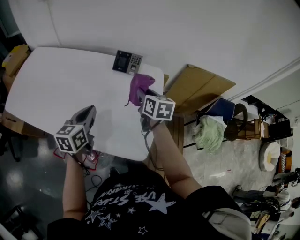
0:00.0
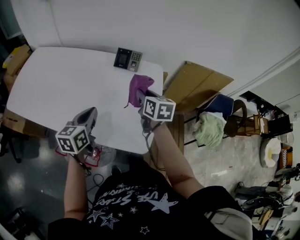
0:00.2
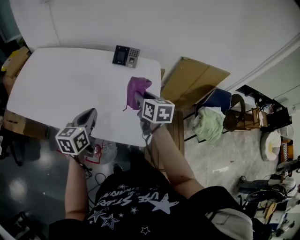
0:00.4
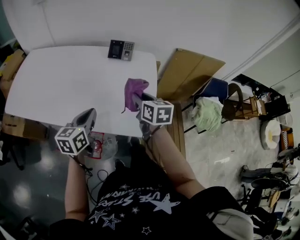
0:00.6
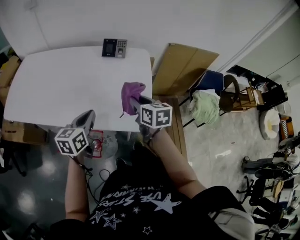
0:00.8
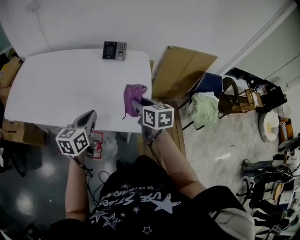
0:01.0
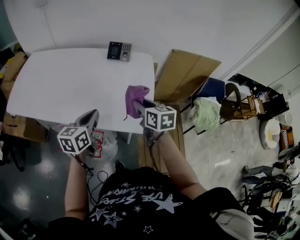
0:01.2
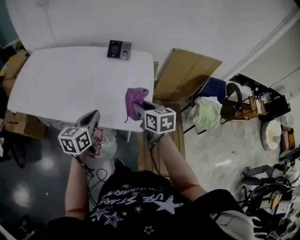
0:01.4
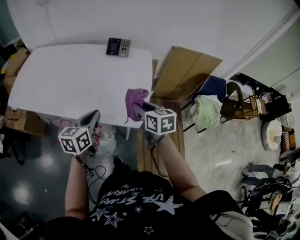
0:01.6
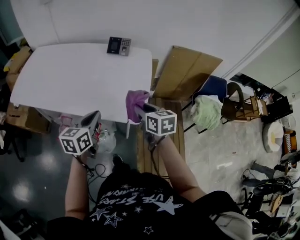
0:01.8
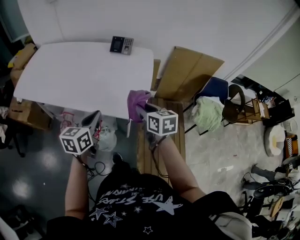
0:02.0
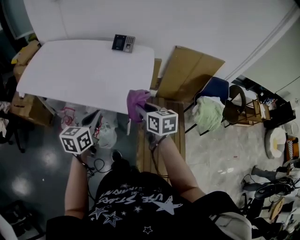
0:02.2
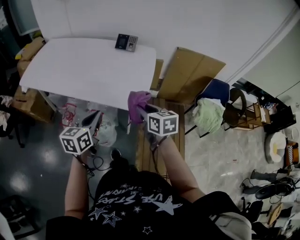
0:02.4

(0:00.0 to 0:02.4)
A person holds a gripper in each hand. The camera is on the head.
0:00.0 - 0:01.2: Both grippers move backward, approximately 20 cm.
0:01.2 - 0:02.4: Both grippers travel together backward, approximately 15 cm.

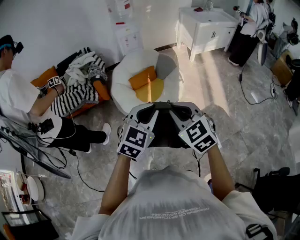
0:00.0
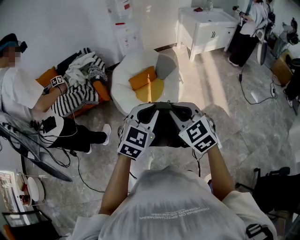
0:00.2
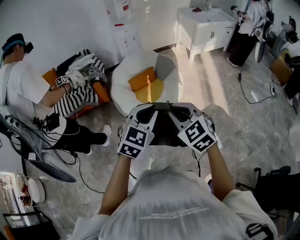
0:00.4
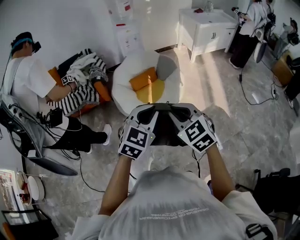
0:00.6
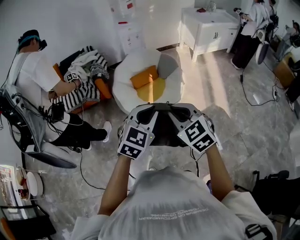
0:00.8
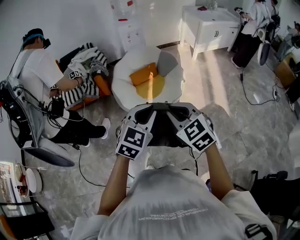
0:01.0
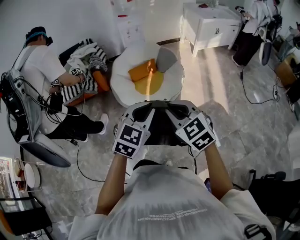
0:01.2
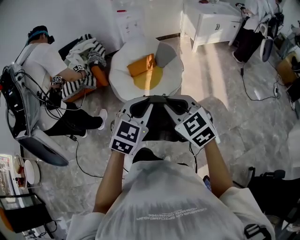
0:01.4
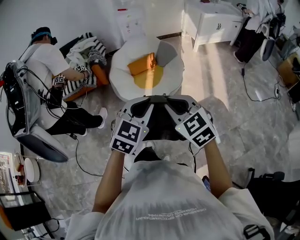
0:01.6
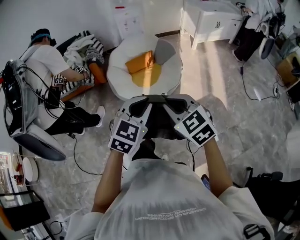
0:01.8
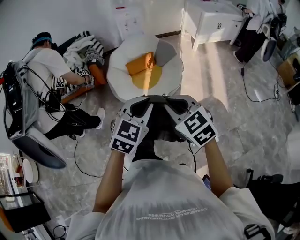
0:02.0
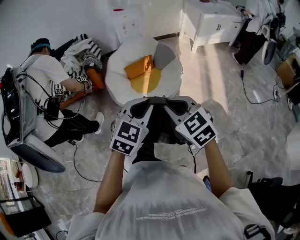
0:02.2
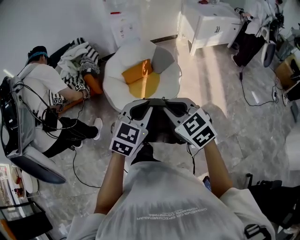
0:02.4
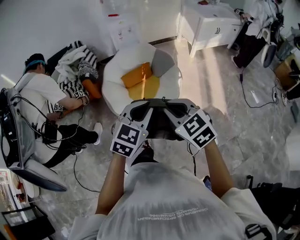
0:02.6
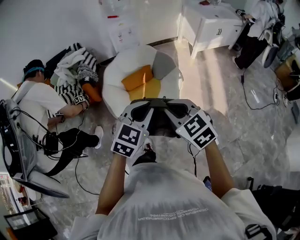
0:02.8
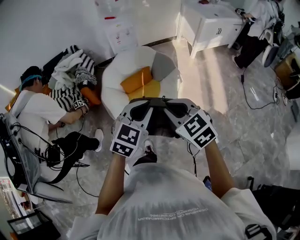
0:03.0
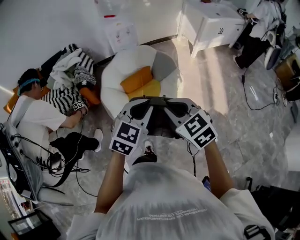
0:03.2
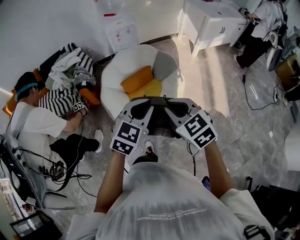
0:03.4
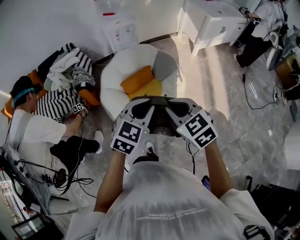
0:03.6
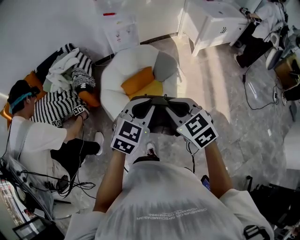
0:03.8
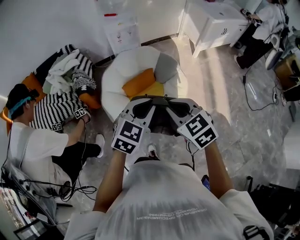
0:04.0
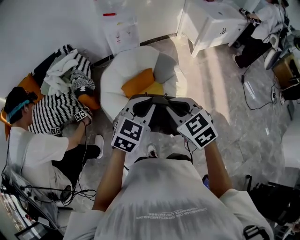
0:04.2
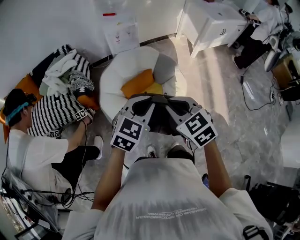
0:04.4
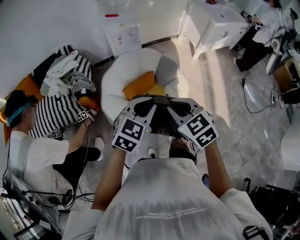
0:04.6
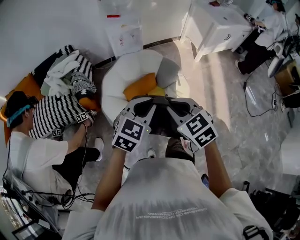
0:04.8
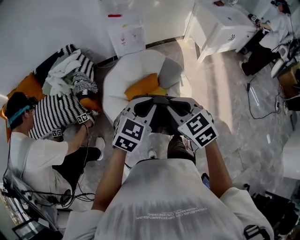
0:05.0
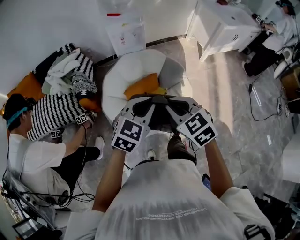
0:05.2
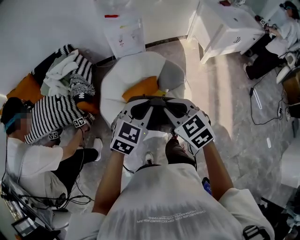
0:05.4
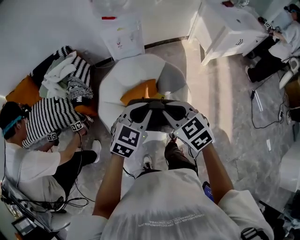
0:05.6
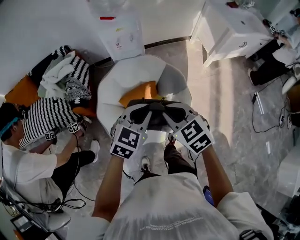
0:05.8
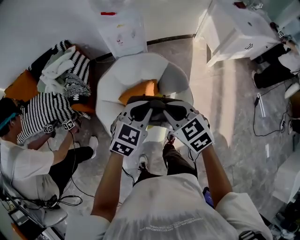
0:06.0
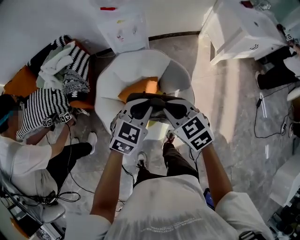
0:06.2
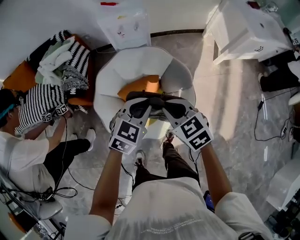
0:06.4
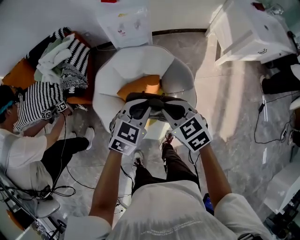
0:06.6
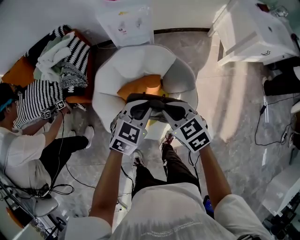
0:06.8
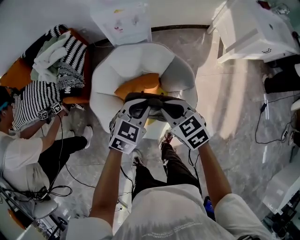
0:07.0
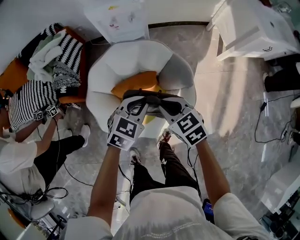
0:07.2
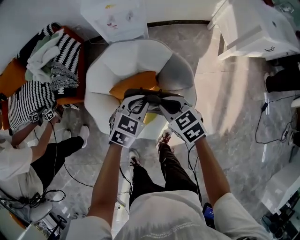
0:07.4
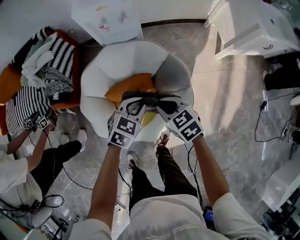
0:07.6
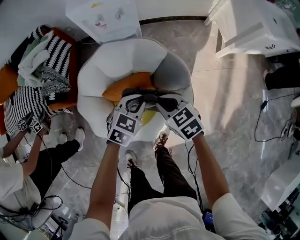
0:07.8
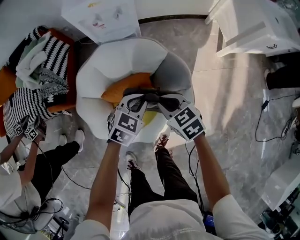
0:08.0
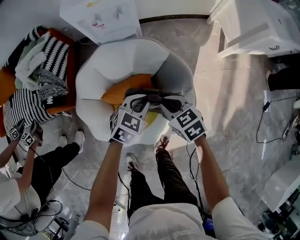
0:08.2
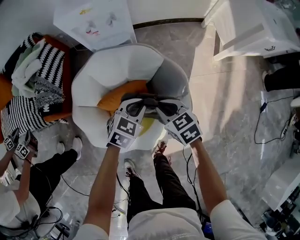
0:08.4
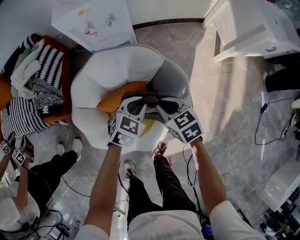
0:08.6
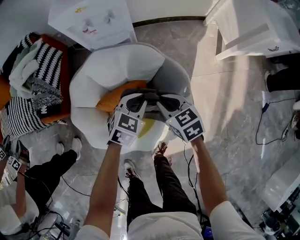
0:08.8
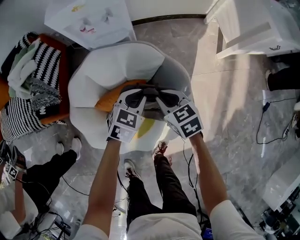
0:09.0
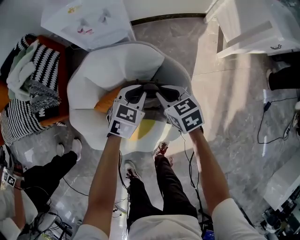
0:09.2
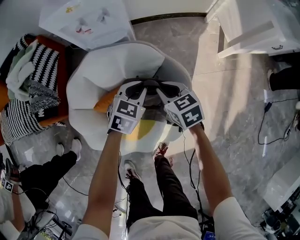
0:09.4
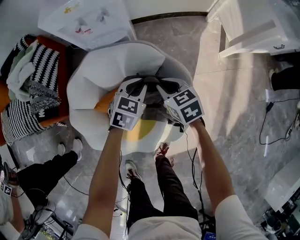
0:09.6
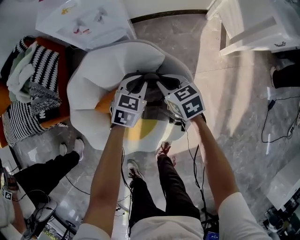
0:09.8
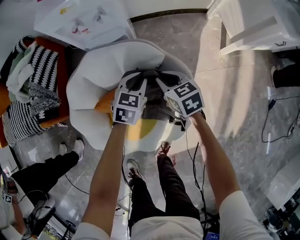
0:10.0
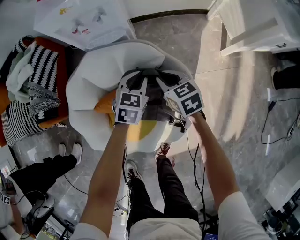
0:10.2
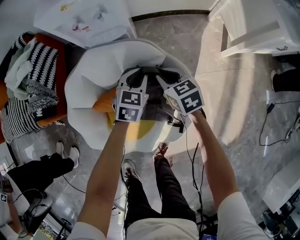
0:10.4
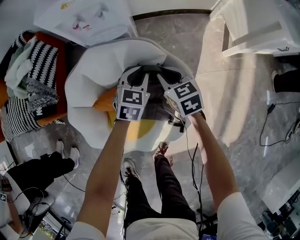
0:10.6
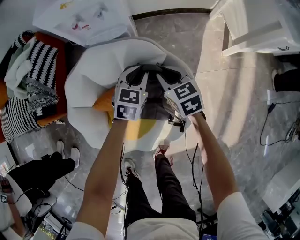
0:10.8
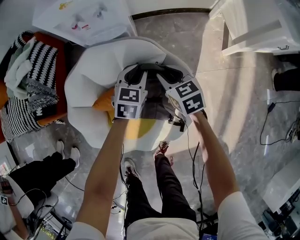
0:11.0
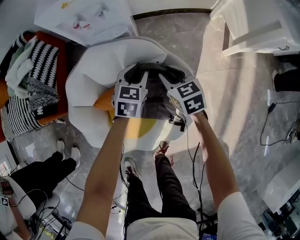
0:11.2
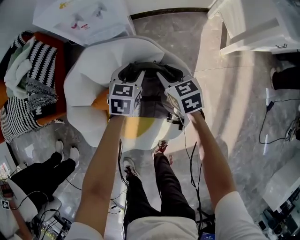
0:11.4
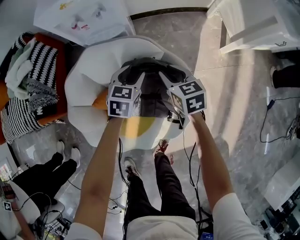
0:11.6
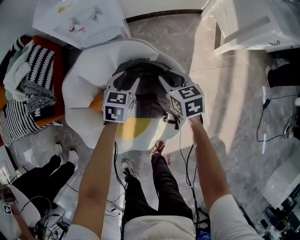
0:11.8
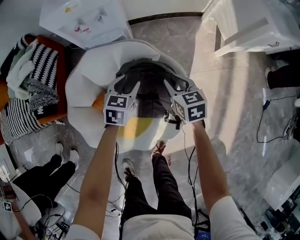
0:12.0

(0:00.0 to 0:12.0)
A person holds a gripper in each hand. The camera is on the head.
0:00.0 - 0:01.6: The left gripper moves roughly 5 cm. The right gripper changes place by some 5 cm.
0:01.6 - 0:03.0: Both grippers move forward, about 30 cm.
0:03.0 - 0:04.4: Both grippers move forward and to the left, some 15 cm.
0:04.4 - 0:06.0: Both grippers travel together forward, approximately 25 cm.
0:06.0 - 0:07.6: The two grippers go about 25 cm downward and forward.
0:07.6 - 0:09.0: The two grippers go approximately 15 cm forward and downward.
0:09.0 - 0:10.4: Both grippers move forward, about 10 cm.
0:10.4 - 0:12.0: The left gripper shifts by about 5 cm, and opens its fingers, while the right gripper is displaced to the right by about 5 cm.

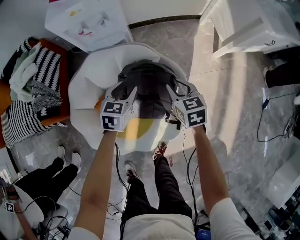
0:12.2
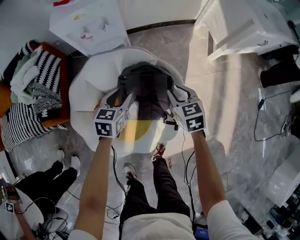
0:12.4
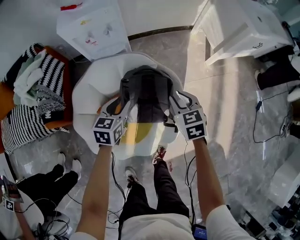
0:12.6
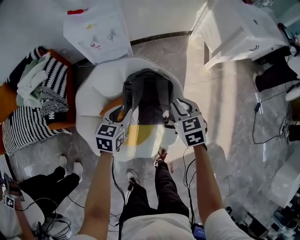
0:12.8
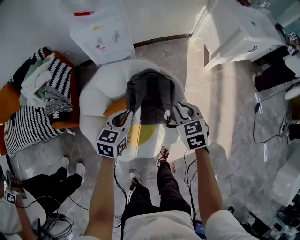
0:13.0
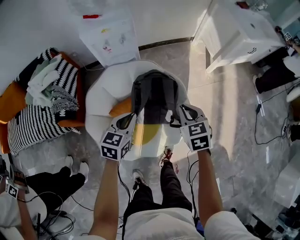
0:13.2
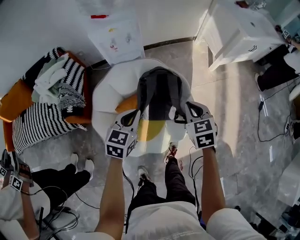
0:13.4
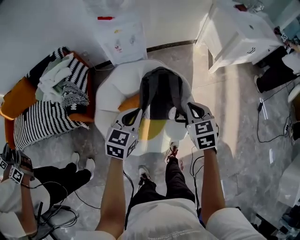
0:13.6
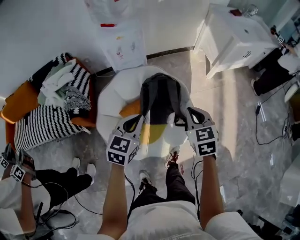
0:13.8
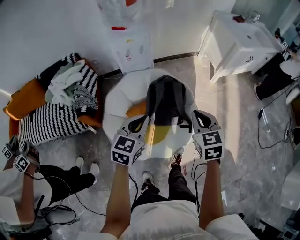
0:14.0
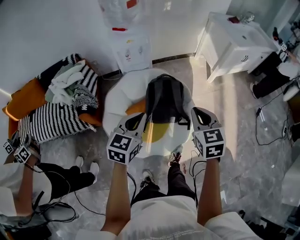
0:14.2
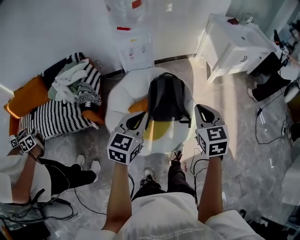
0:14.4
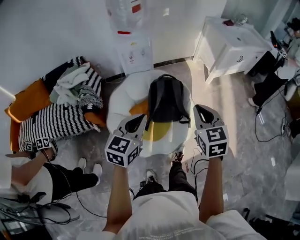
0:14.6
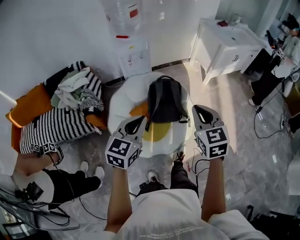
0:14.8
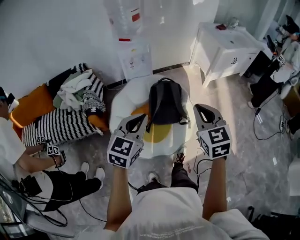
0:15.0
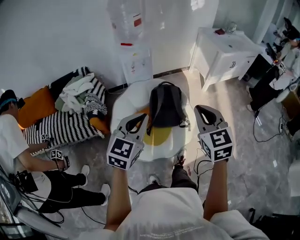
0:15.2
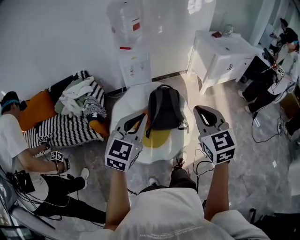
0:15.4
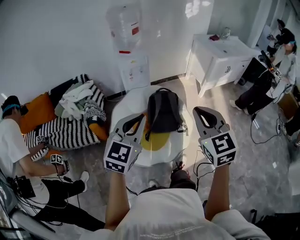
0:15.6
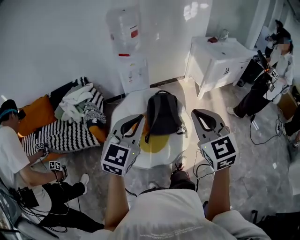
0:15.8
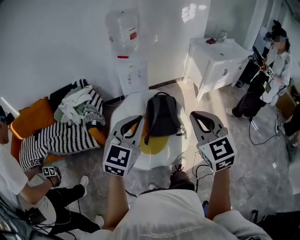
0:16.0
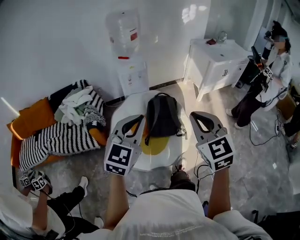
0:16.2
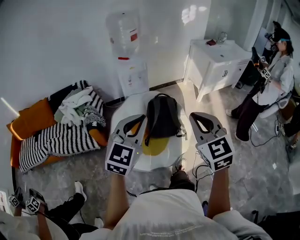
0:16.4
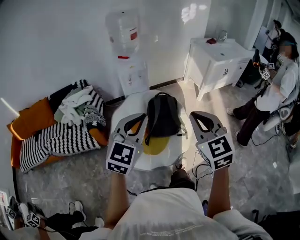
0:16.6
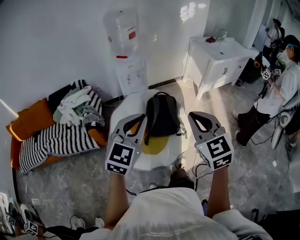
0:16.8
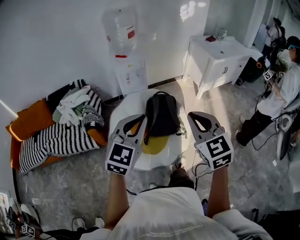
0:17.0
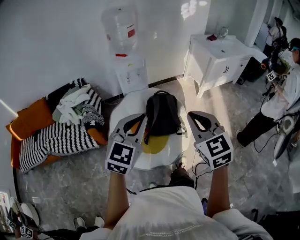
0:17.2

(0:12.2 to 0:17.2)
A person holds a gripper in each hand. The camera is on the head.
0:12.2 - 0:13.8: The grippers both shift upward and backward by approximately 35 cm. The left gripper closes. The right gripper closes up.
0:13.8 - 0:15.6: The right gripper is displaced backward and upward by some 35 cm, and rotates roughly 30 degrees, while the left gripper travels upward and backward by approximately 35 cm, and changes its angle by some 30 degrees.
0:15.6 - 0:17.2: The grippers stay close to where they were, moving slightly.

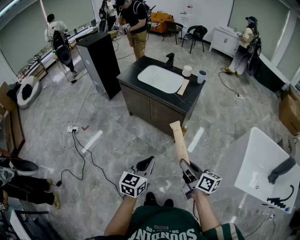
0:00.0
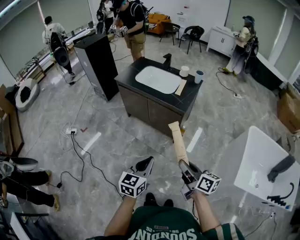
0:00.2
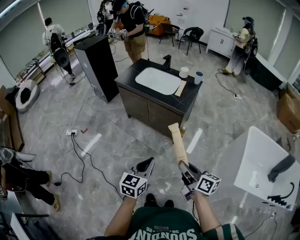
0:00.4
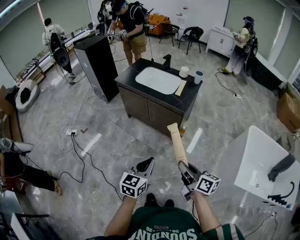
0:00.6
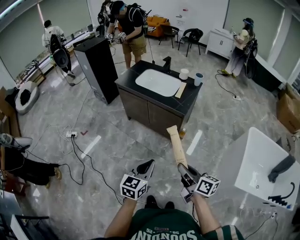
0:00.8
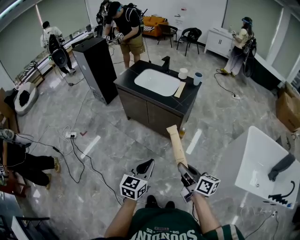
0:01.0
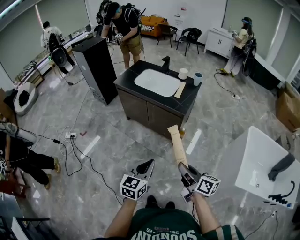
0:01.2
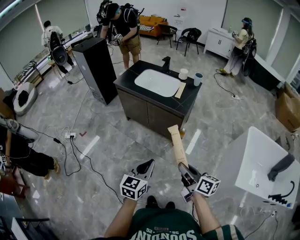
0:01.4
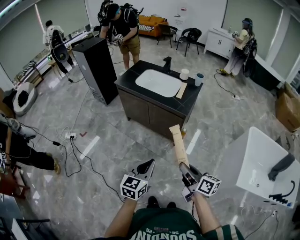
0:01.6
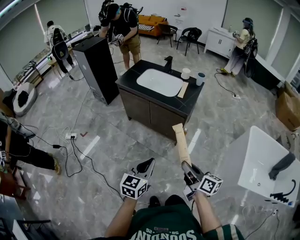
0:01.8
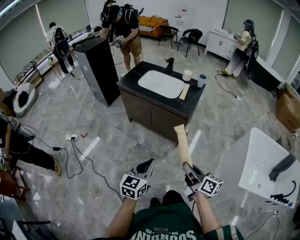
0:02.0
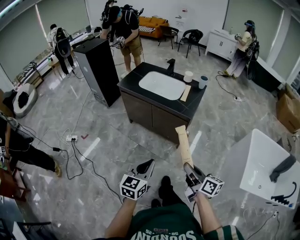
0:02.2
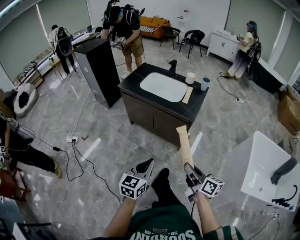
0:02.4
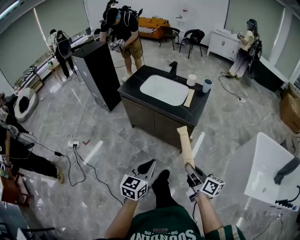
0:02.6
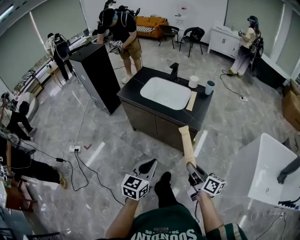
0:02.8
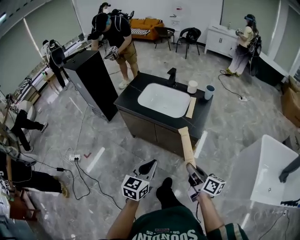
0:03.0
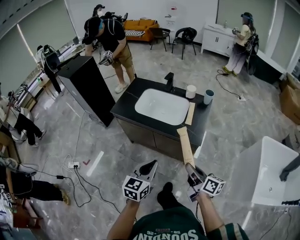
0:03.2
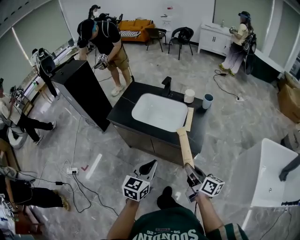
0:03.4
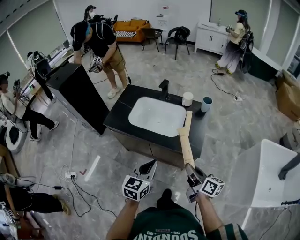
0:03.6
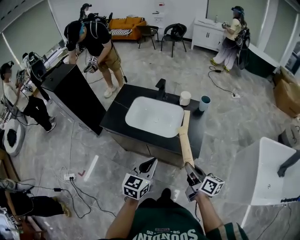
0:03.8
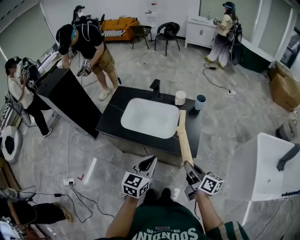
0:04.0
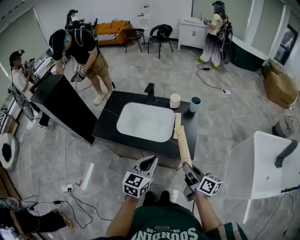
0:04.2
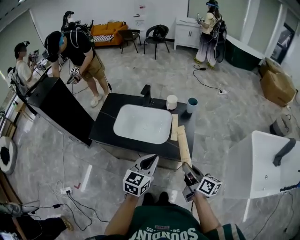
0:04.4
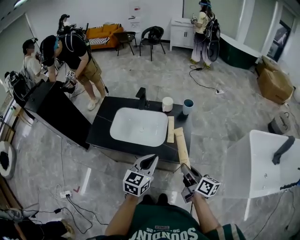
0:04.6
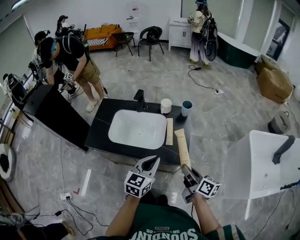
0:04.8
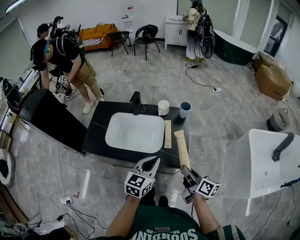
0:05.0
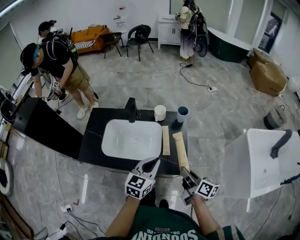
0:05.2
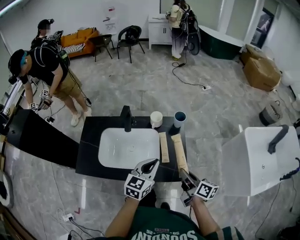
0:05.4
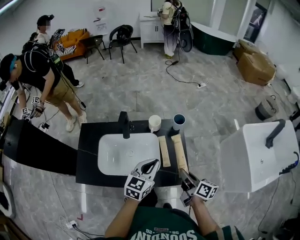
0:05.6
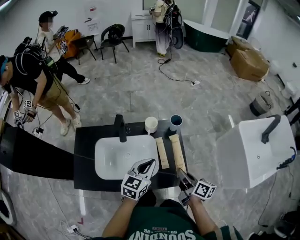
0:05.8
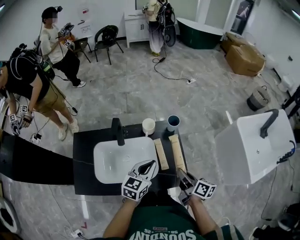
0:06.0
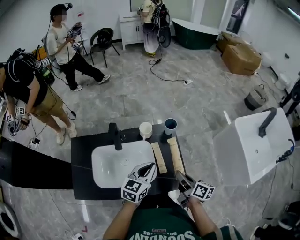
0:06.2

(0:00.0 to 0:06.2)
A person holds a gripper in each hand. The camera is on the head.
0:00.0 - 0:01.6: The grippers stay close to where they were, moving slightly.
0:01.6 - 0:03.2: Both grippers move forward, approximately 30 cm.
0:03.2 - 0:04.6: Both grippers move forward, approximately 20 cm.
0:04.6 - 0:06.2: Both grippers travel together forward, roughly 20 cm. The left gripper turns by some 20 degrees. Meanwhile the right gripper changes its angle by some 20 degrees.
